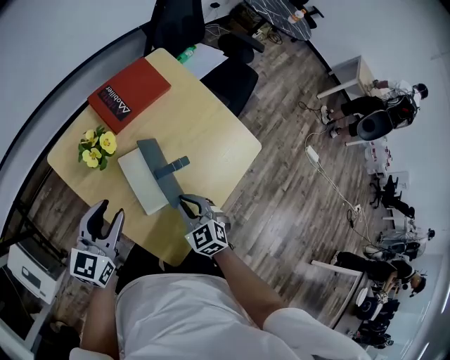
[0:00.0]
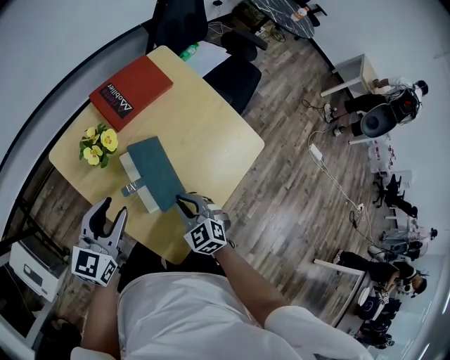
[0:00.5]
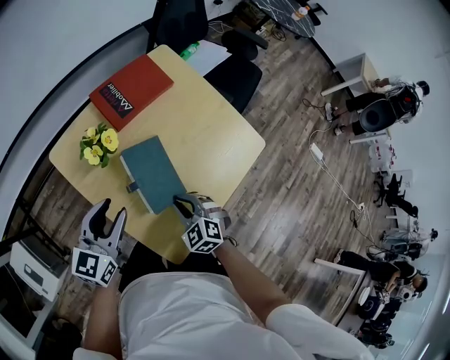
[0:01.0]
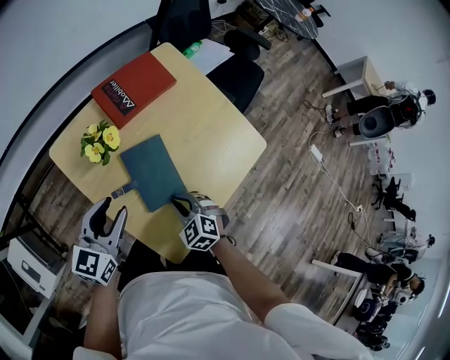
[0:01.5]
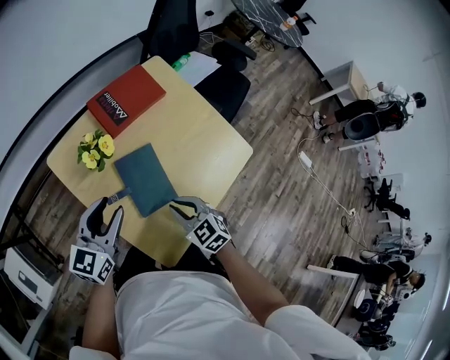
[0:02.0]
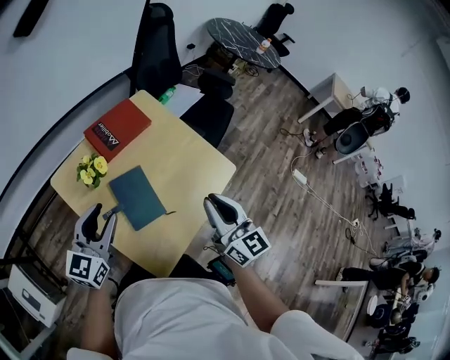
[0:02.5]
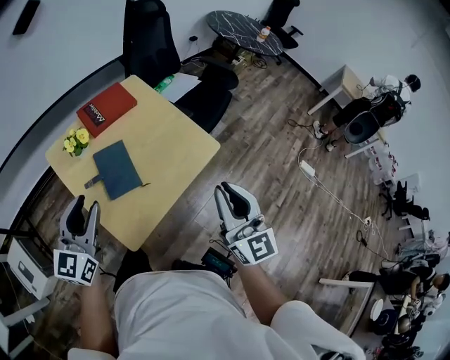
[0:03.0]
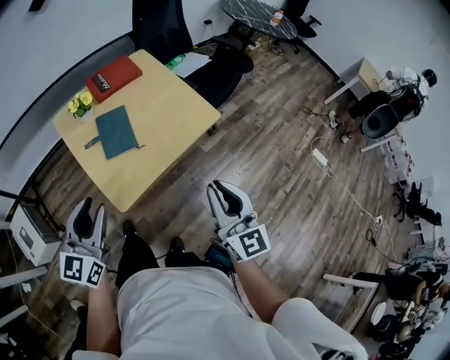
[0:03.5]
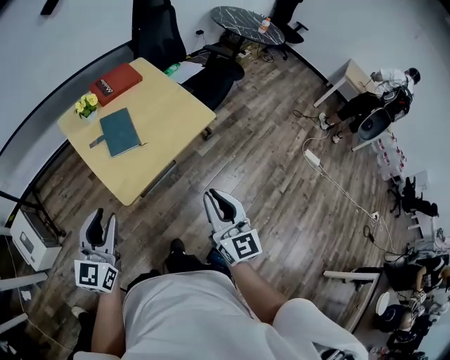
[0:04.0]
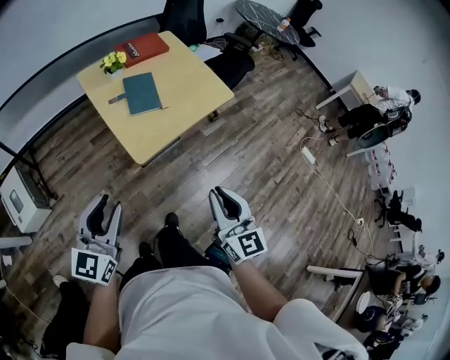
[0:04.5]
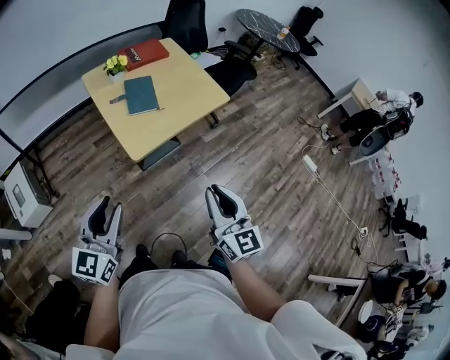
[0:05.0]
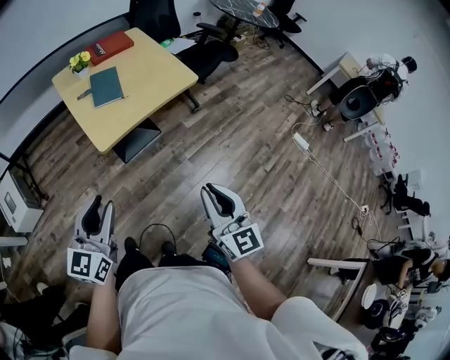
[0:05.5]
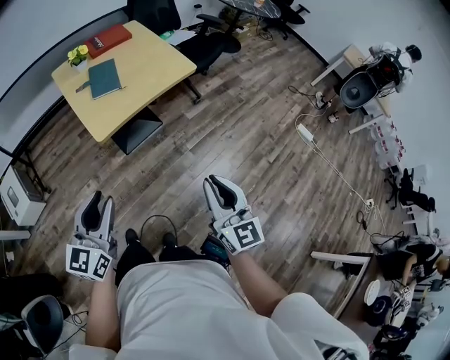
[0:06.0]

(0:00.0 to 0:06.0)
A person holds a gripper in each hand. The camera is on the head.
0:00.0 - 0:02.0: The grippers stay close to where they were, moving slightly.
0:02.0 - 0:04.0: The right gripper shifts about 50 cm backward, to the right and upward, and tilts its fingers about 40 degrees upward. Meanwhile the left gripper goes approximately 40 cm backward and to the right.
0:04.0 - 0:06.0: Both grippers travel together backward and to the right, some 25 cm.

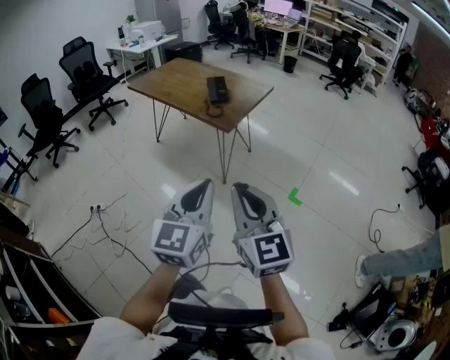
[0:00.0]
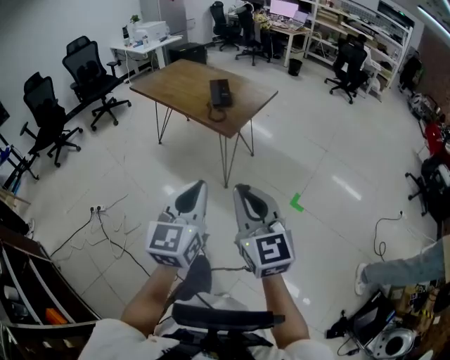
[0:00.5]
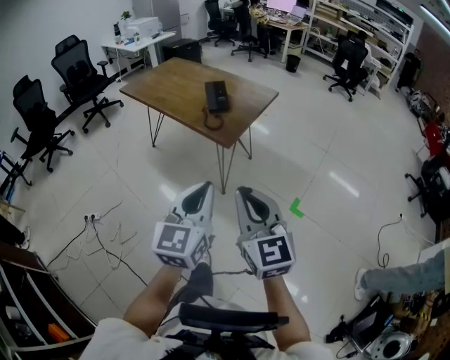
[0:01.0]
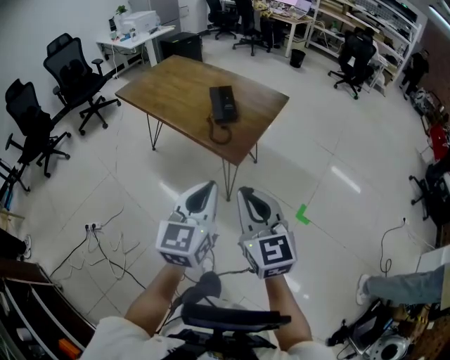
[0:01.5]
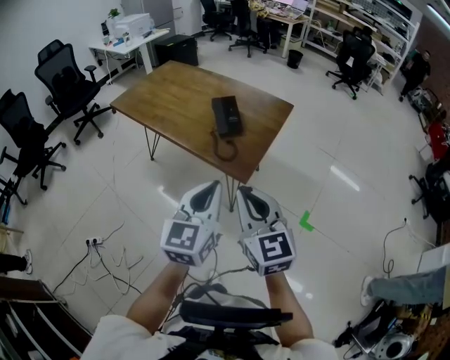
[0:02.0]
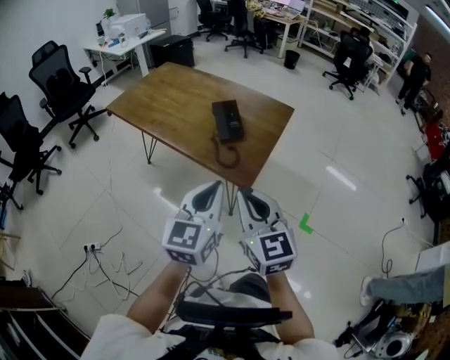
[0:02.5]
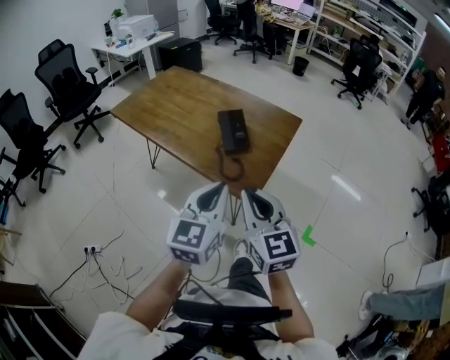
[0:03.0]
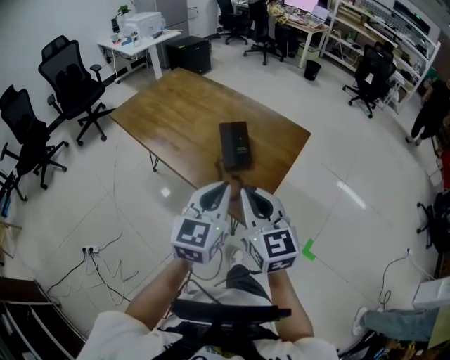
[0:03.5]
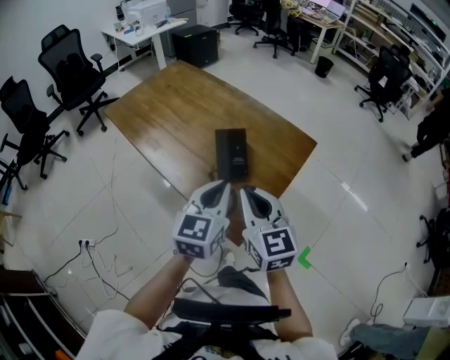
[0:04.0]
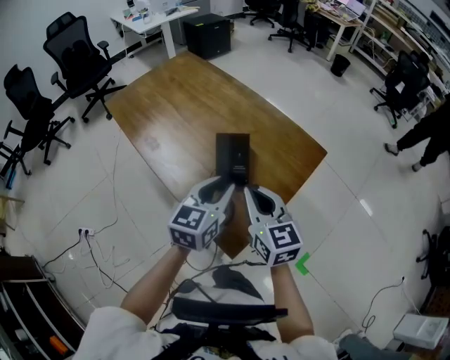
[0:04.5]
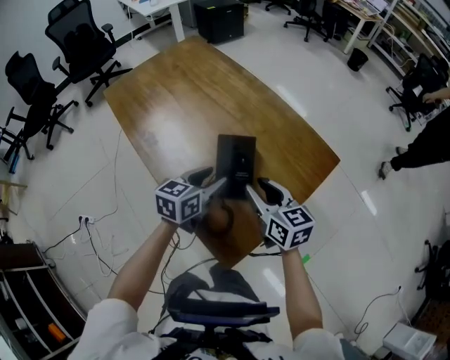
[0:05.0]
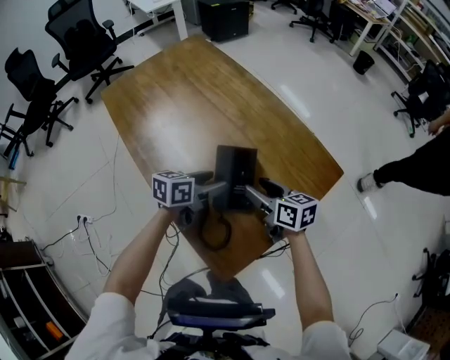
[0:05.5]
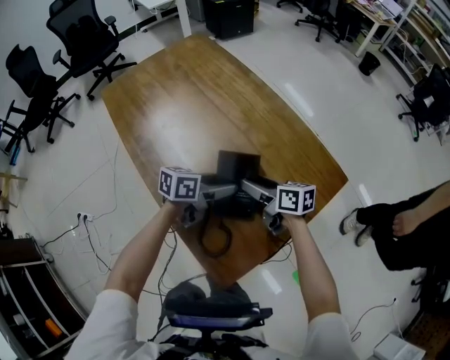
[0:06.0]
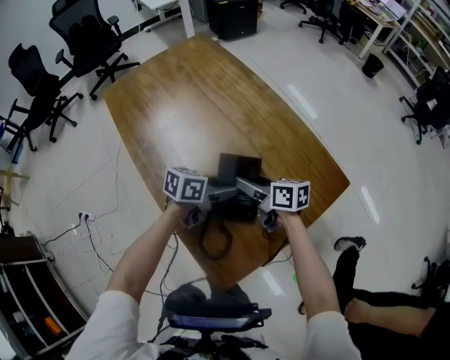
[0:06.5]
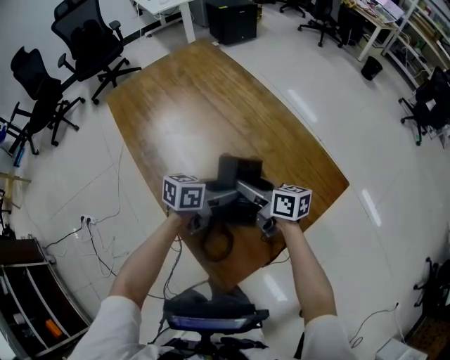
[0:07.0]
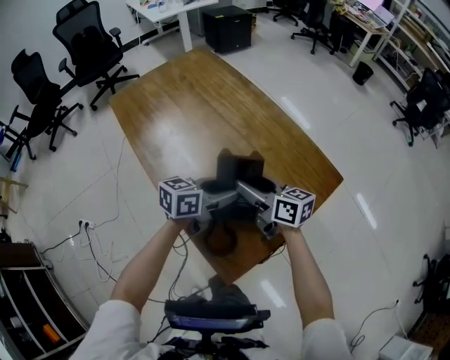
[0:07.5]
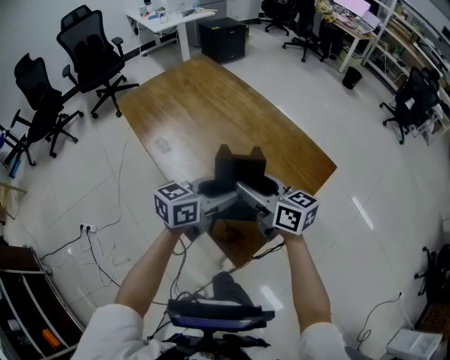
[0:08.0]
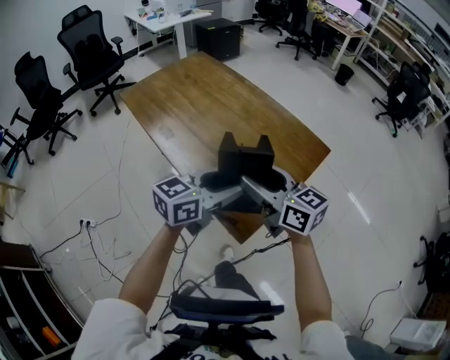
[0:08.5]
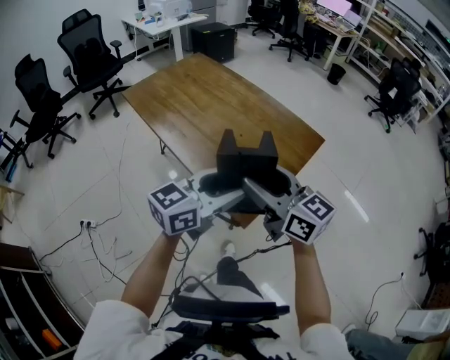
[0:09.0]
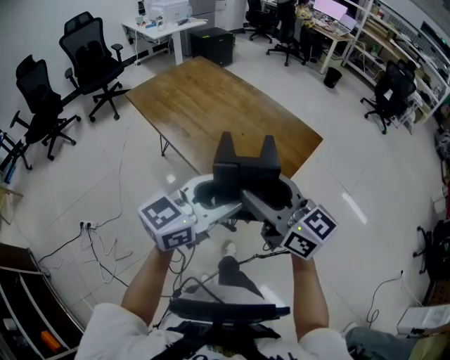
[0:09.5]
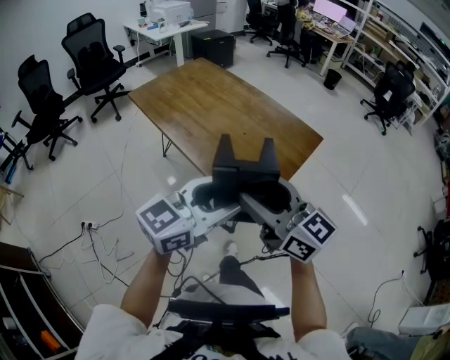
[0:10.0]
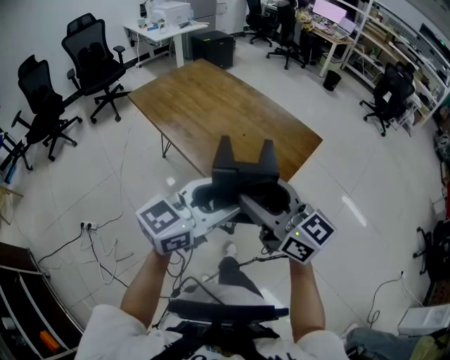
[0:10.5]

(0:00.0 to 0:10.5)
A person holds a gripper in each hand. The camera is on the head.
0:00.0 - 0:02.0: The two grippers go approximately 35 cm forward.
0:02.0 - 0:04.0: Both grippers move forward, roughly 25 cm.
0:04.0 - 0:06.5: The left gripper heads downward and forward, covering roughly 30 cm, rotates roughly 50 degrees, and opens, while the right gripper shifts approximately 30 cm forward and downward, swivels some 60 degrees, and opens its fingers.
0:06.5 - 0:08.5: Both grippers move upward and backward, roughly 30 cm. The left gripper swivels some 30 degrees. Meanwhile the right gripper rotates some 30 degrees.
0:08.5 - 0:10.5: The grippers both shift backward and upward by approximately 20 cm.

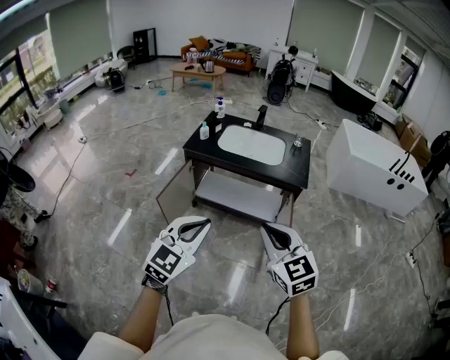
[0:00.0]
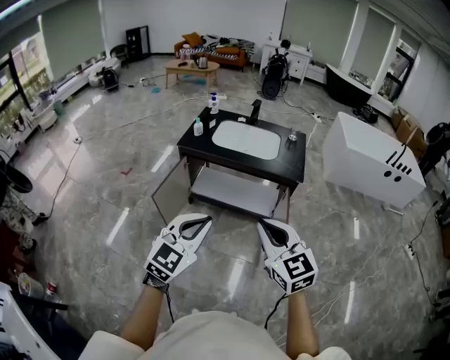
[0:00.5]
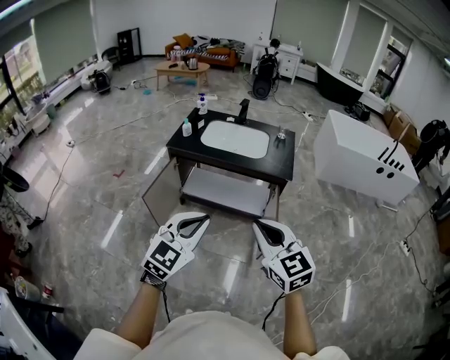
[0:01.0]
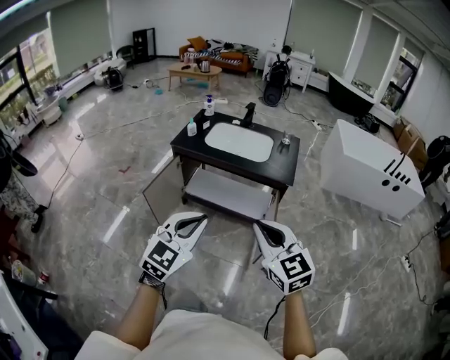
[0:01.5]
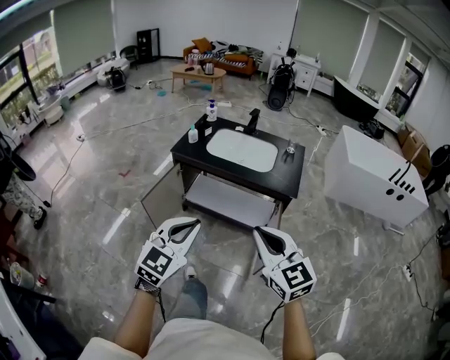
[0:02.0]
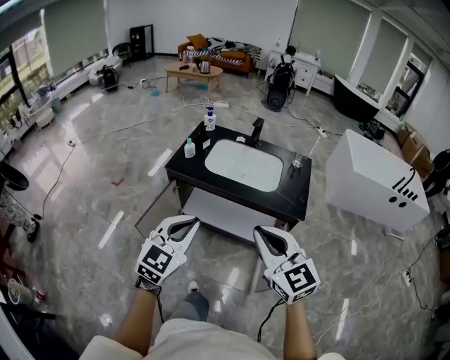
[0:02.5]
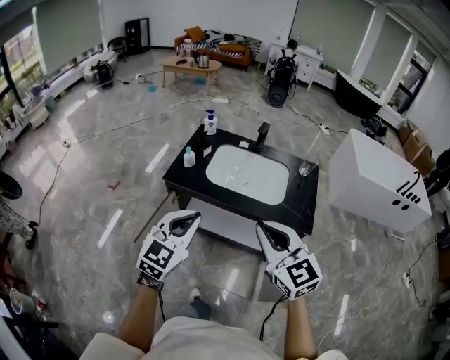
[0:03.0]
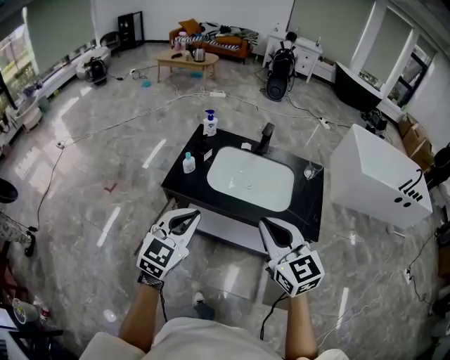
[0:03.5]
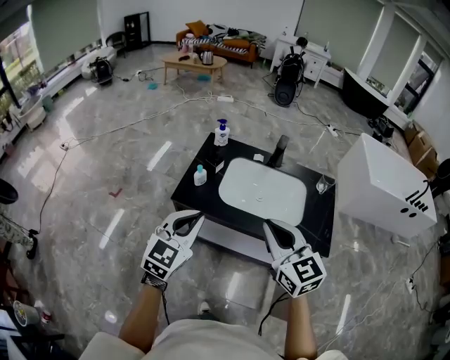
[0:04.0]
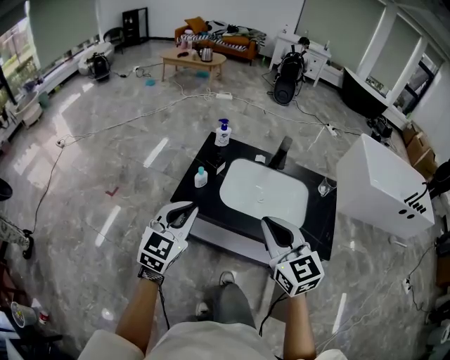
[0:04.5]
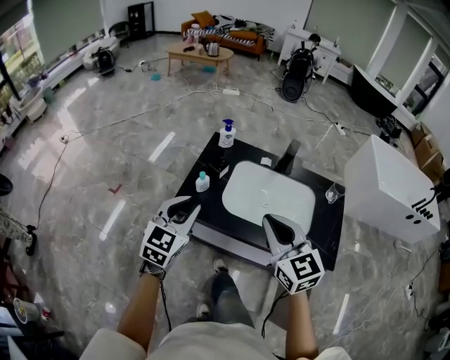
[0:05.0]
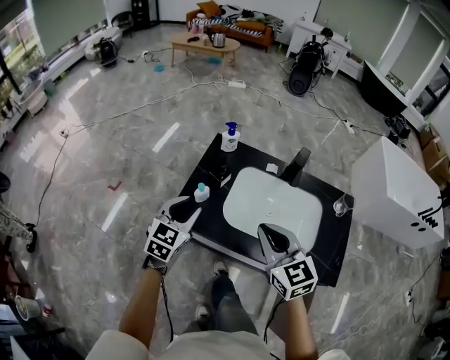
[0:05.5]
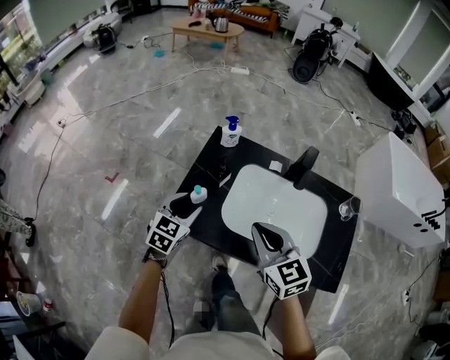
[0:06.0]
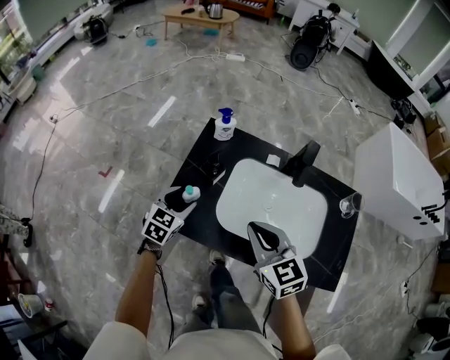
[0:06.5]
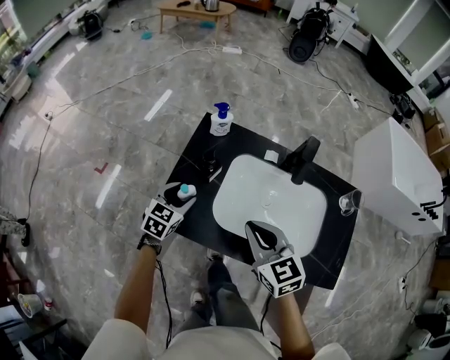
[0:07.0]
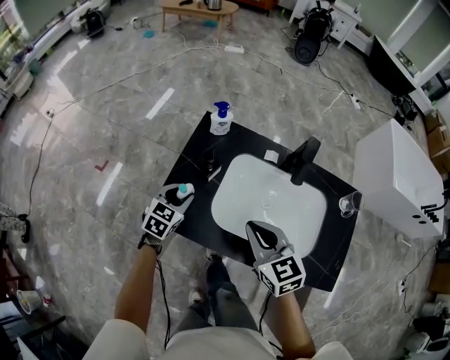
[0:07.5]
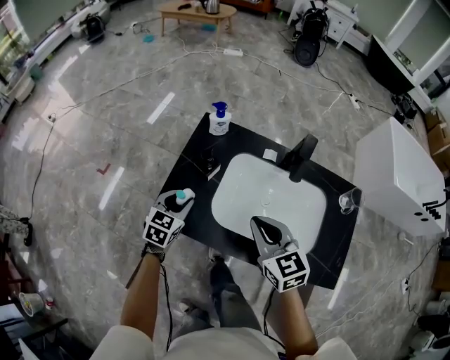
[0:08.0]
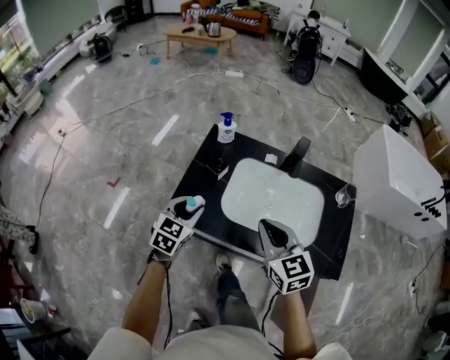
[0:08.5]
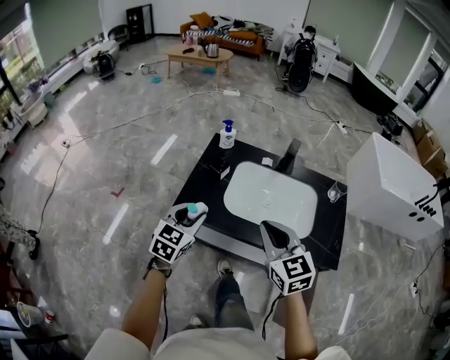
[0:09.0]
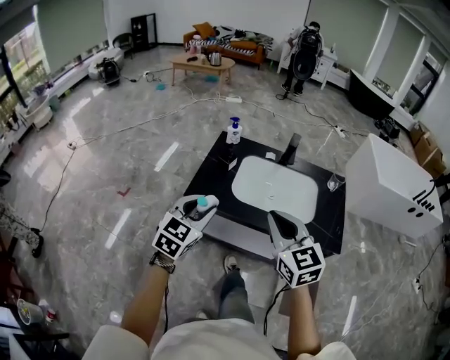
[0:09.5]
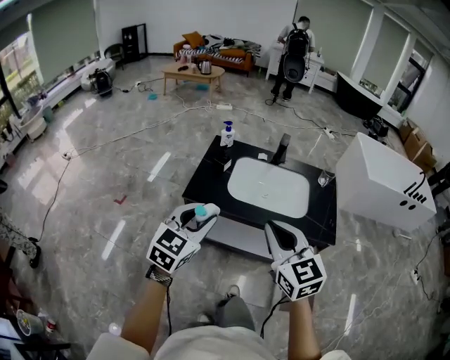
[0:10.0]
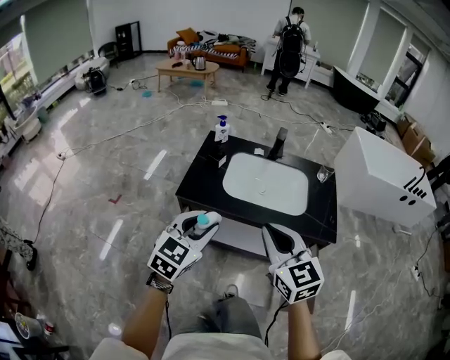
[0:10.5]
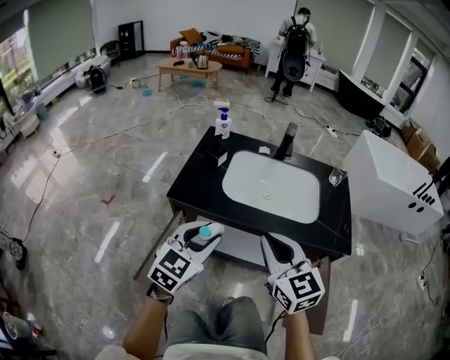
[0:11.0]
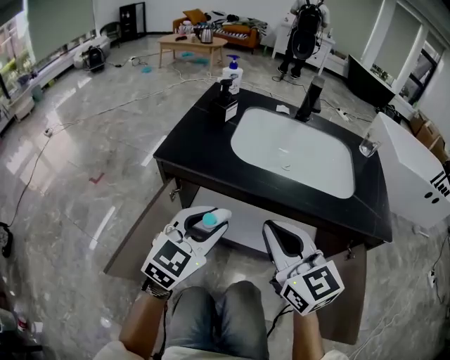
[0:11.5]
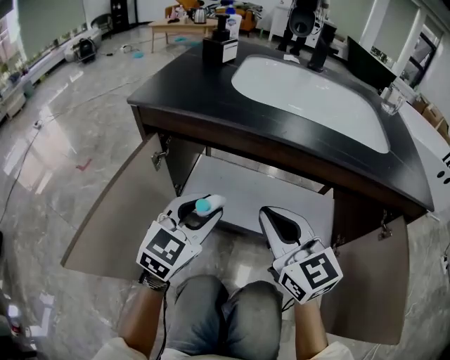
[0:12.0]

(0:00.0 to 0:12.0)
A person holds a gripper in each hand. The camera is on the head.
0:00.0 - 0:02.0: The right gripper moves to the right, roughly 5 cm. Meanwhile the left gripper goes some 10 cm to the right and forward.
0:02.0 - 0:04.0: The two grippers travel together, forward, about 50 cm.
0:04.0 - 0:06.0: The two grippers go some 30 cm forward and downward. The left gripper changes its angle by about 20 degrees, and opens its fingers.
0:06.0 - 0:08.0: The grippers both shift downward by approximately 5 cm.
0:08.0 - 0:10.0: The grippers both shift backward and upward by roughly 40 cm. The left gripper changes its angle by some 20 degrees.
0:10.0 - 0:12.0: The two grippers go approximately 50 cm downward.
